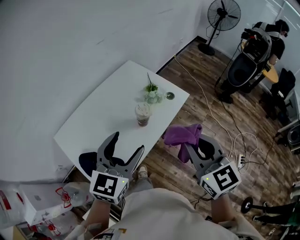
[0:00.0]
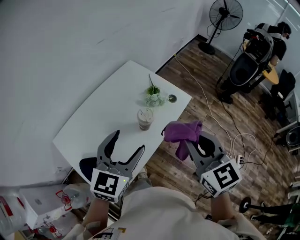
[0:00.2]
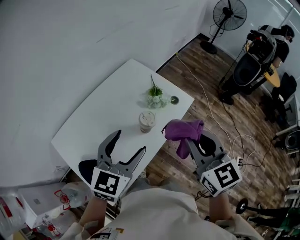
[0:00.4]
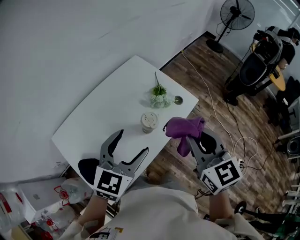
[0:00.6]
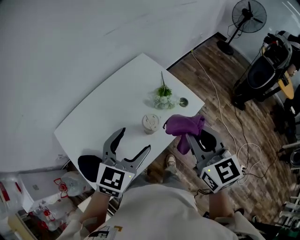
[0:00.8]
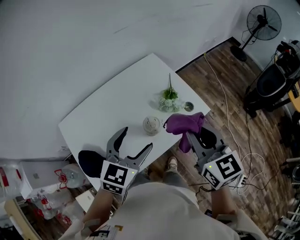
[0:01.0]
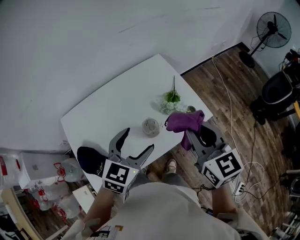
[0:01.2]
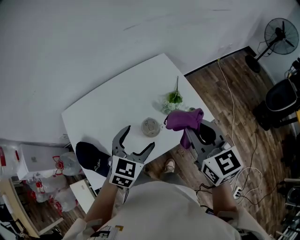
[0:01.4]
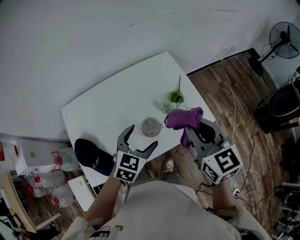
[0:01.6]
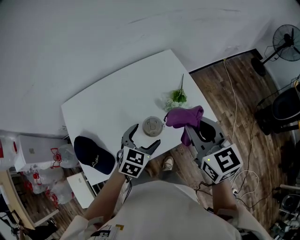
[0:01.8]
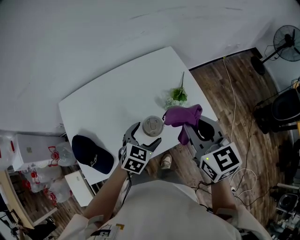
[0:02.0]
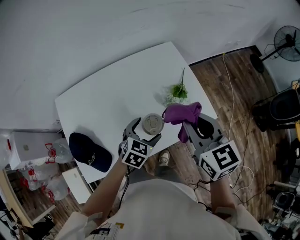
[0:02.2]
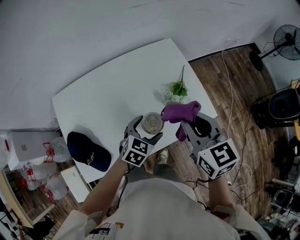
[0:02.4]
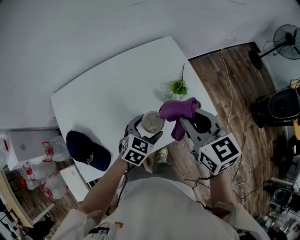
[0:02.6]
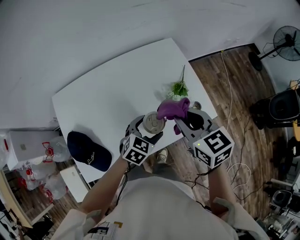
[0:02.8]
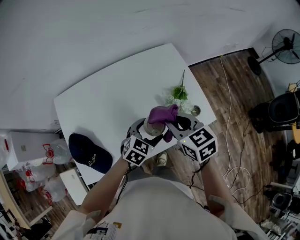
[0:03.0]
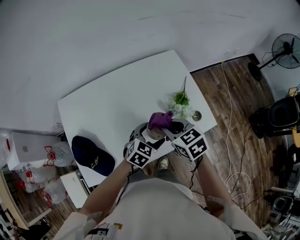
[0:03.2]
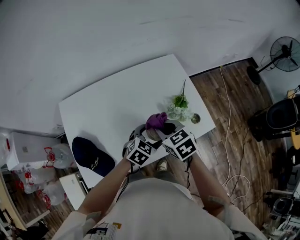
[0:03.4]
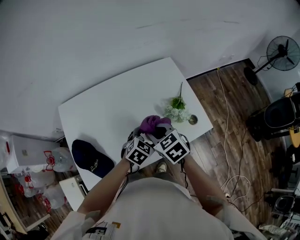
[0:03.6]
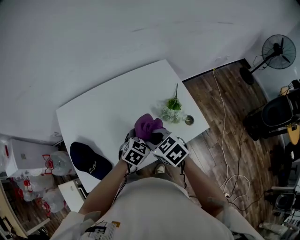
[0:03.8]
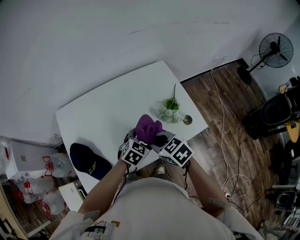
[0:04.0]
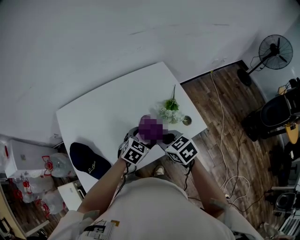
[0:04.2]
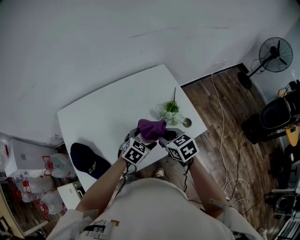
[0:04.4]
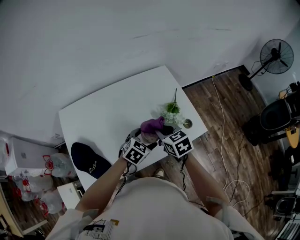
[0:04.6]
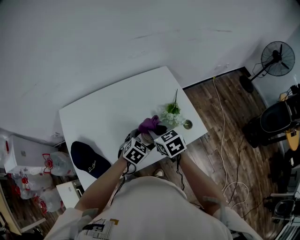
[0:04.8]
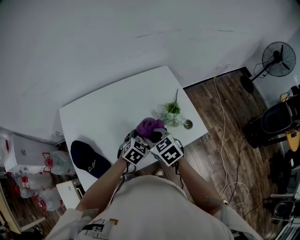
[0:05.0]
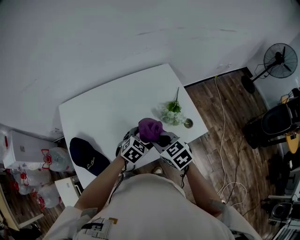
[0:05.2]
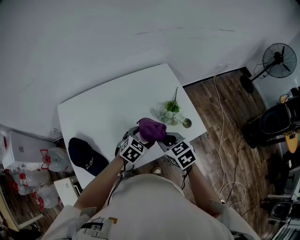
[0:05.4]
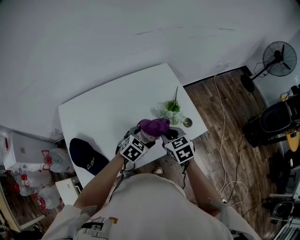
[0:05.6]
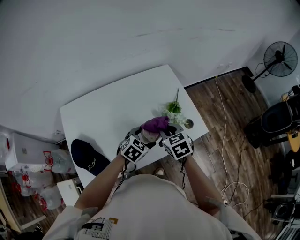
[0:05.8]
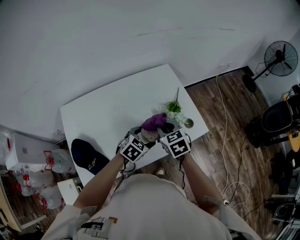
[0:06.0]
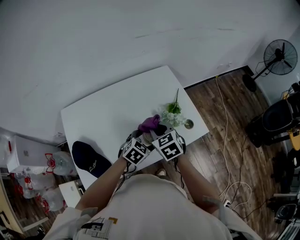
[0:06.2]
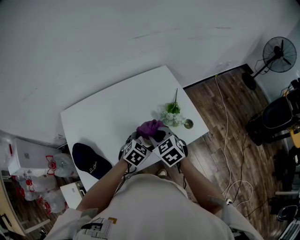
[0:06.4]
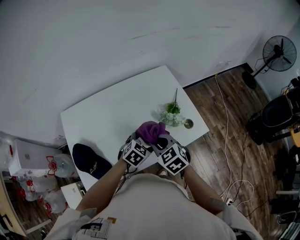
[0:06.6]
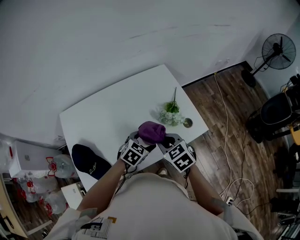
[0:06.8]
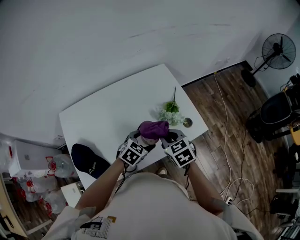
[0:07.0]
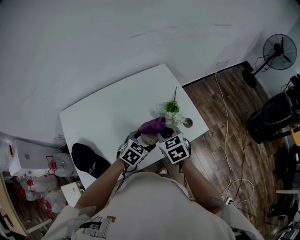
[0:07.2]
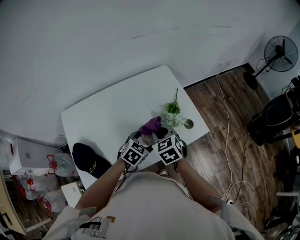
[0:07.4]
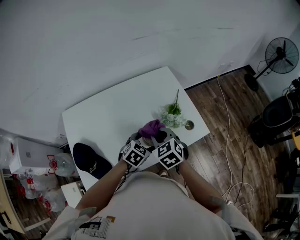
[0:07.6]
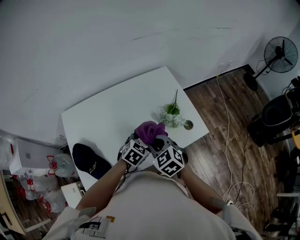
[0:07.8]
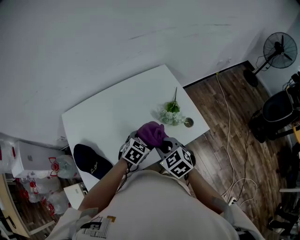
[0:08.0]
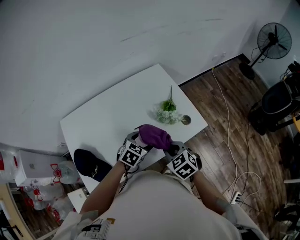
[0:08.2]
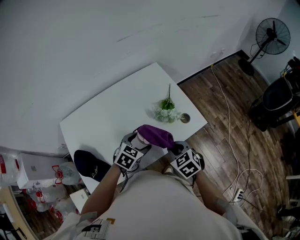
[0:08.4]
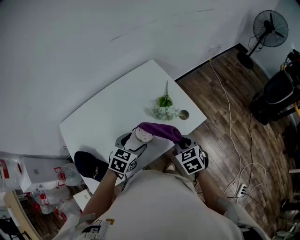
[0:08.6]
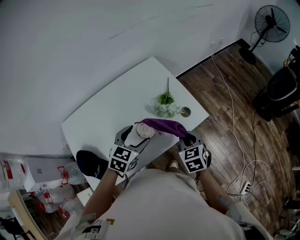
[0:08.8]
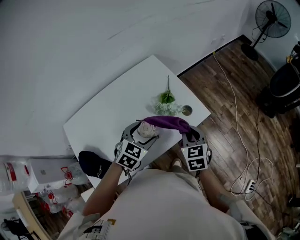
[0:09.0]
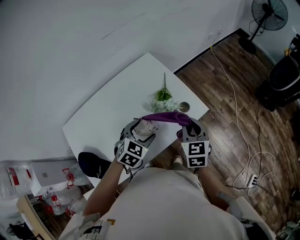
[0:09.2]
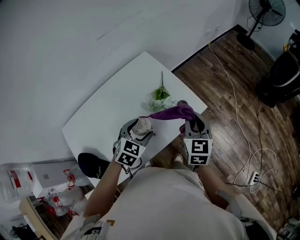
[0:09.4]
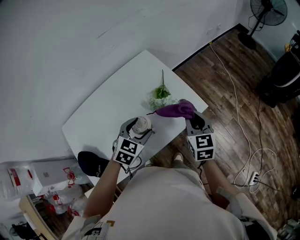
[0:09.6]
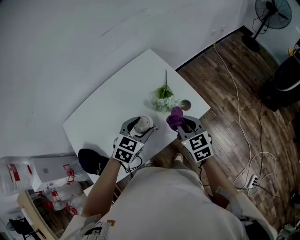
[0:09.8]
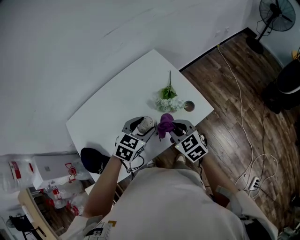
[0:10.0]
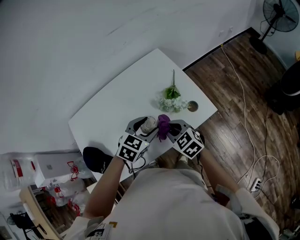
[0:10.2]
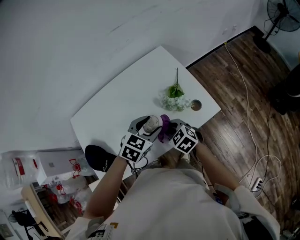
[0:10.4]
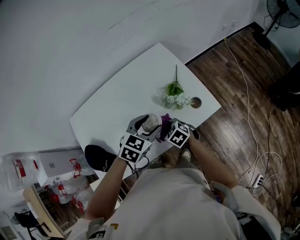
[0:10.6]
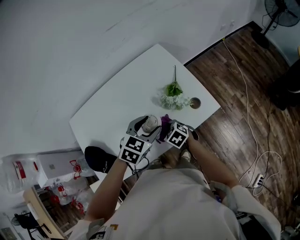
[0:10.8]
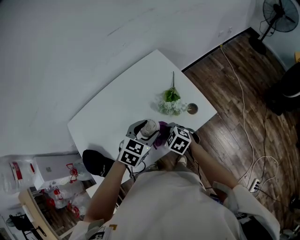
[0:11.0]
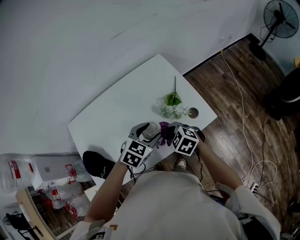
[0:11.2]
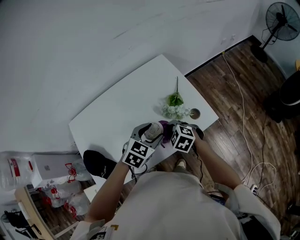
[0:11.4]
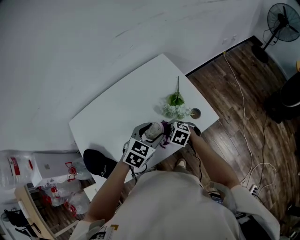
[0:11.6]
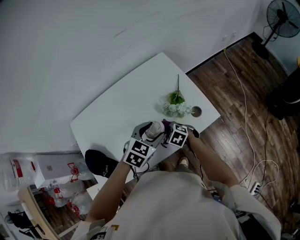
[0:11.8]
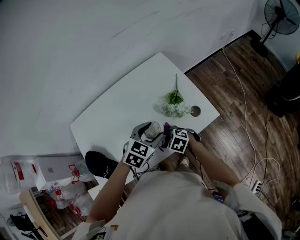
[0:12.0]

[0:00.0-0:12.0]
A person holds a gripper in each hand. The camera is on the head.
0.0 to 1.6 s: The left gripper is displaced forward, downward and to the right by some 25 cm, and turns by roughly 30 degrees, while the right gripper goes some 25 cm forward, and swivels about 30 degrees.
1.6 to 3.0 s: The left gripper heads downward, covering about 10 cm; the right gripper goes some 15 cm downward and to the left, and rotates some 20 degrees.
4.4 to 6.0 s: The right gripper travels to the left and back again, roughly 5 cm each way.
7.6 to 9.0 s: The right gripper heads to the right, covering approximately 20 cm, and changes its angle by some 30 degrees. The left gripper is displaced upward by roughly 5 cm.
9.0 to 10.4 s: The right gripper ends up some 15 cm from where it was, and changes its angle by roughly 40 degrees.
10.4 to 12.0 s: The right gripper swings up and down, roughly 10 cm each way, with 2 reversals, and swivels some 20 degrees.

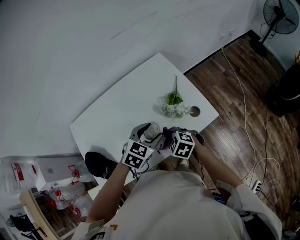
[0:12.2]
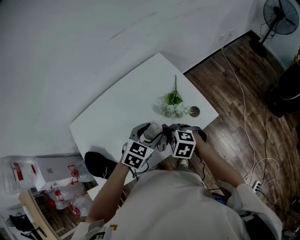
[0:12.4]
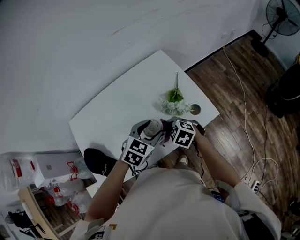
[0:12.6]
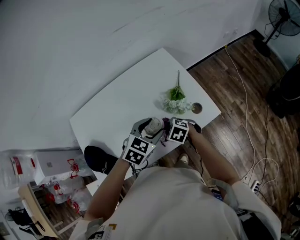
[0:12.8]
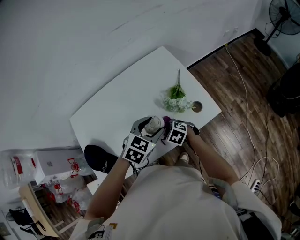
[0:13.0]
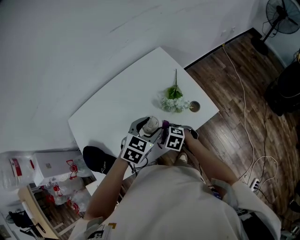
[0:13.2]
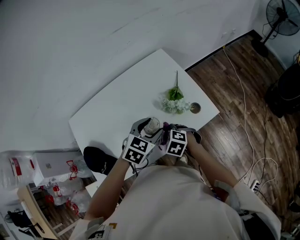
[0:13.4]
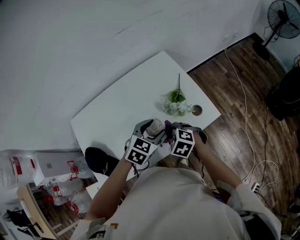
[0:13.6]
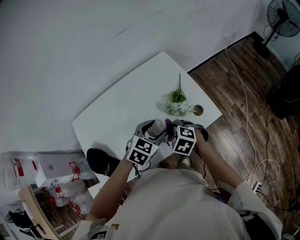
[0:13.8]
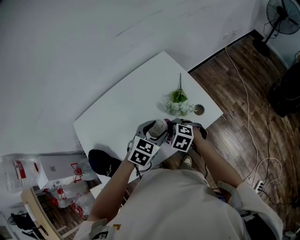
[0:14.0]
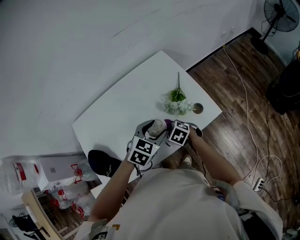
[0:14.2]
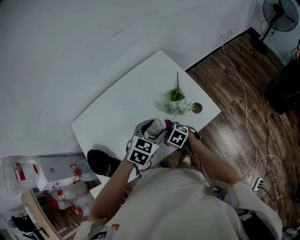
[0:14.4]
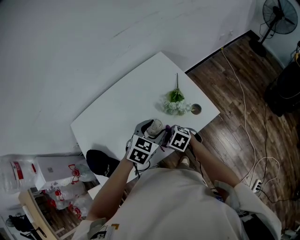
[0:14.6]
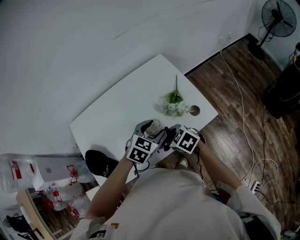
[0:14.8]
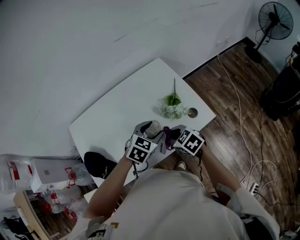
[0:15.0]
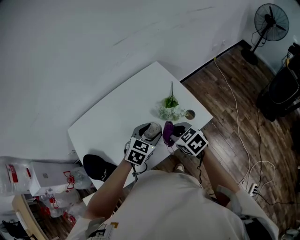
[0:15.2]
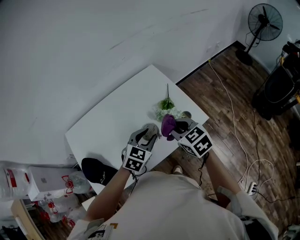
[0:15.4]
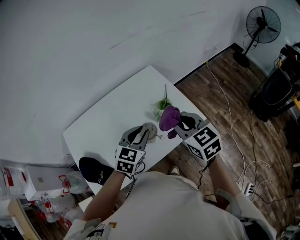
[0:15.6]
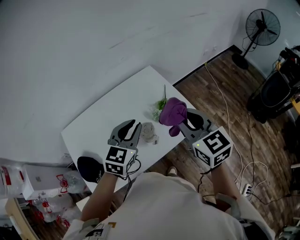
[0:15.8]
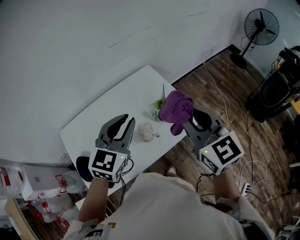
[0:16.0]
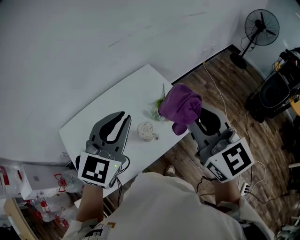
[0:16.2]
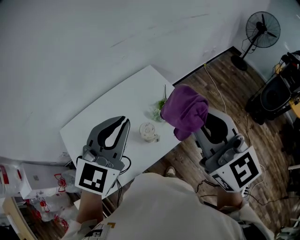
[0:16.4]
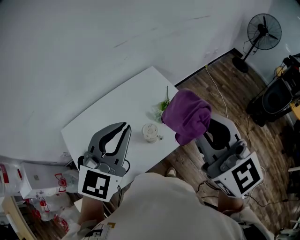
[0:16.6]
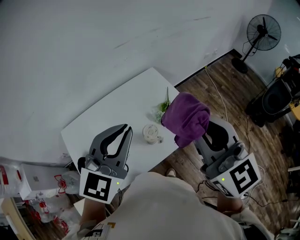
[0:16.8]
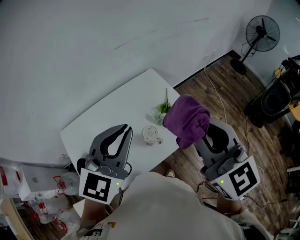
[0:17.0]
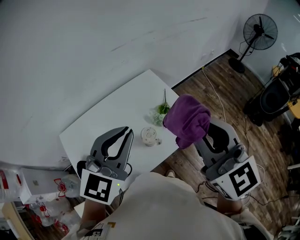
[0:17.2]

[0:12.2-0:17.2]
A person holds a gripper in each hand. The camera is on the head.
12.2 to 13.8 s: The right gripper goes downward and returns, about 10 cm each way.
13.8 to 15.6 s: The left gripper goes roughly 5 cm upward, and closes its fingers. The right gripper travels upward by some 20 cm, and points its fingers approximately 30 degrees further upward.
15.6 to 17.2 s: Both grippers travel together upward, approximately 20 cm. The right gripper changes its angle by approximately 30 degrees. Meanwhile the left gripper turns by roughly 20 degrees.

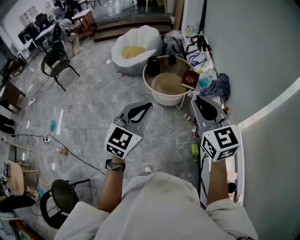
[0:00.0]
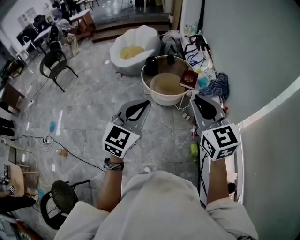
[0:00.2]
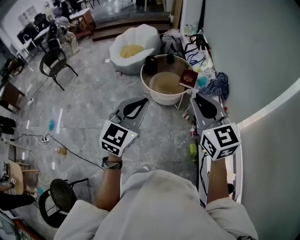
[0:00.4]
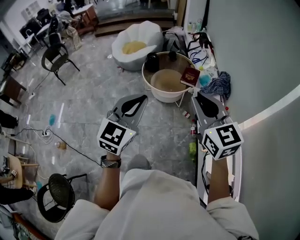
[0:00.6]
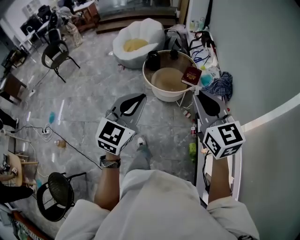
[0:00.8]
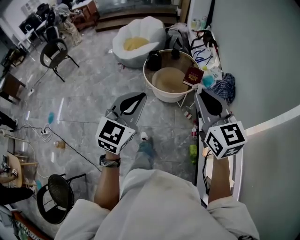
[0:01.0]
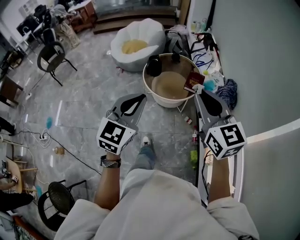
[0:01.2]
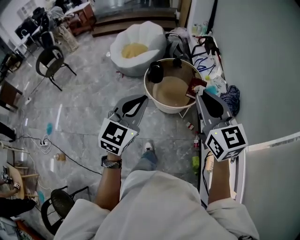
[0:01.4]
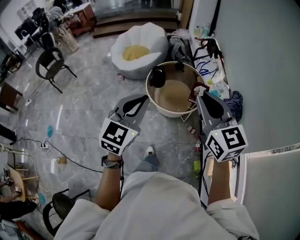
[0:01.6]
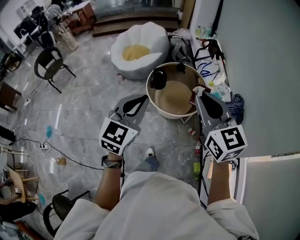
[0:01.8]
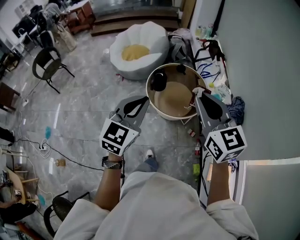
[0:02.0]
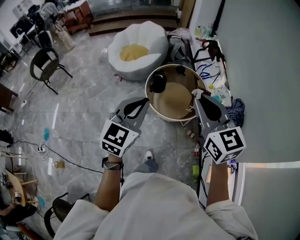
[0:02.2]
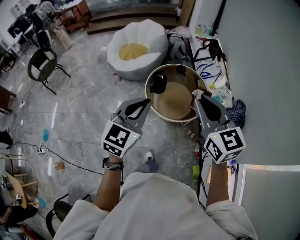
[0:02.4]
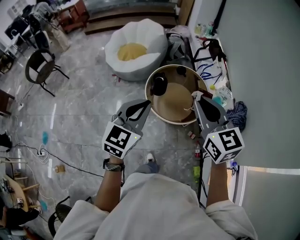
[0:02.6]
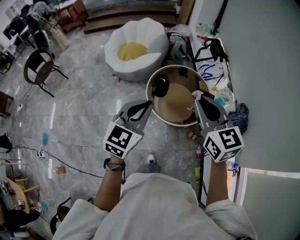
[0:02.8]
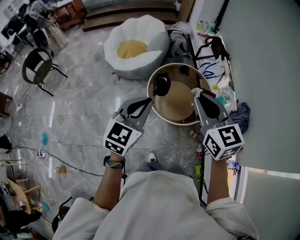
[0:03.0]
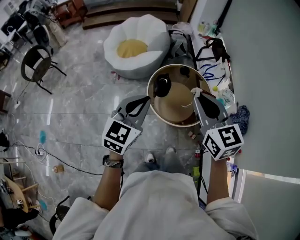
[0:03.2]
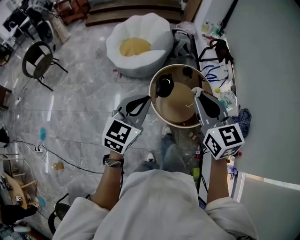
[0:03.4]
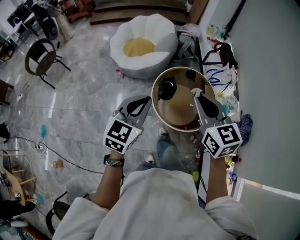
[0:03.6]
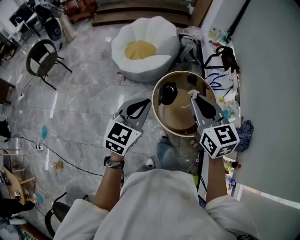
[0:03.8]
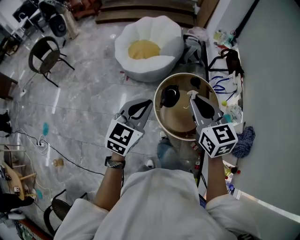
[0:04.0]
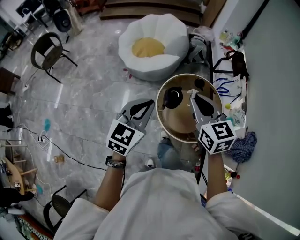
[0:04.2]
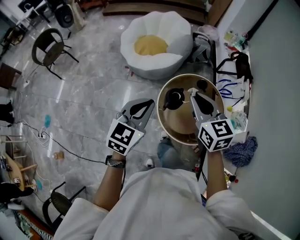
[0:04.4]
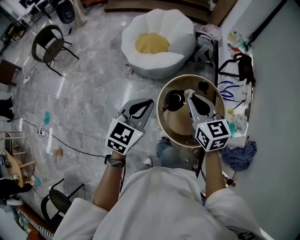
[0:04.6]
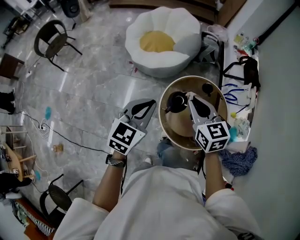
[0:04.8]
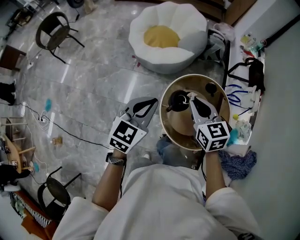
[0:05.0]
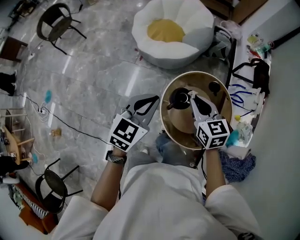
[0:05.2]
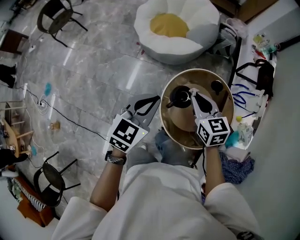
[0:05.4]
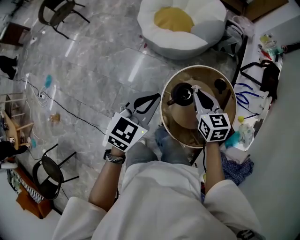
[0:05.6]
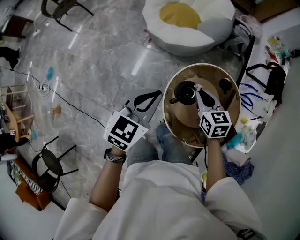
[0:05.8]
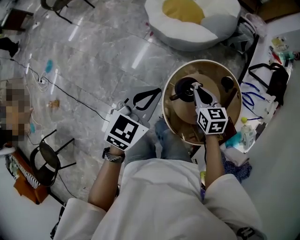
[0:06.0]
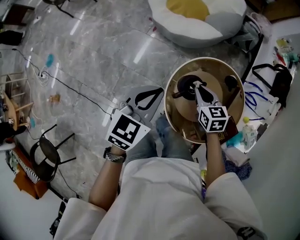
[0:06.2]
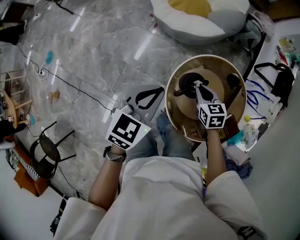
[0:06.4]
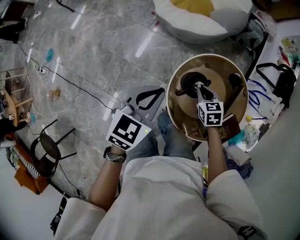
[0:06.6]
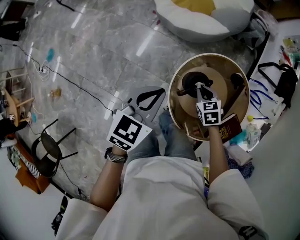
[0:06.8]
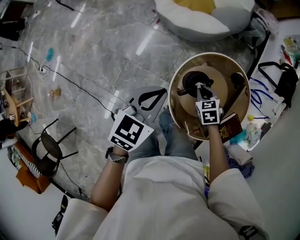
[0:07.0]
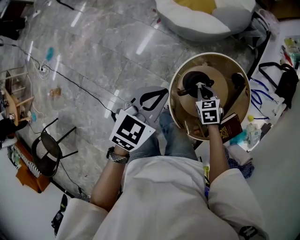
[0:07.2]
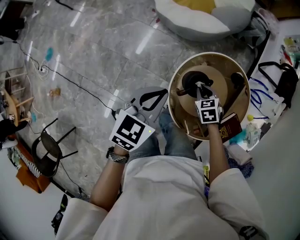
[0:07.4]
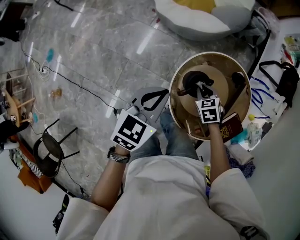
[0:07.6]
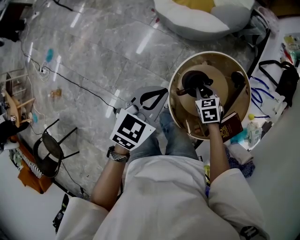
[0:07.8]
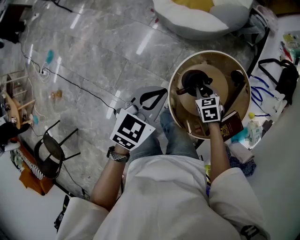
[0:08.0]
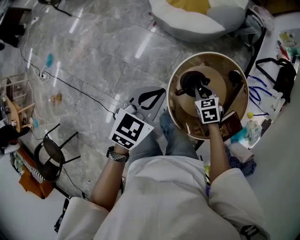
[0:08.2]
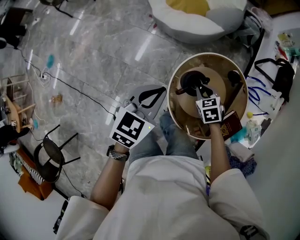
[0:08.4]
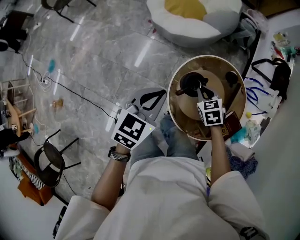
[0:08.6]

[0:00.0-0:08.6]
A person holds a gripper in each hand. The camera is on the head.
0.0 to 1.4 s: The grippers both shift forward by roughly 20 cm.
1.4 to 2.8 s: The left gripper heads forward, covering roughly 25 cm. The right gripper moves forward and to the left, roughly 25 cm.
2.8 to 4.4 s: Both grippers move forward, roughly 20 cm.
4.4 to 5.8 s: The left gripper heads downward and forward, covering roughly 15 cm. Meanwhile the right gripper goes roughly 30 cm downward and forward, and swivels roughly 20 degrees.
5.8 to 7.2 s: The right gripper heads downward, covering about 15 cm, and swivels approximately 30 degrees; the left gripper travels downward by some 5 cm.
7.2 to 8.6 s: The right gripper travels upward by about 5 cm.
